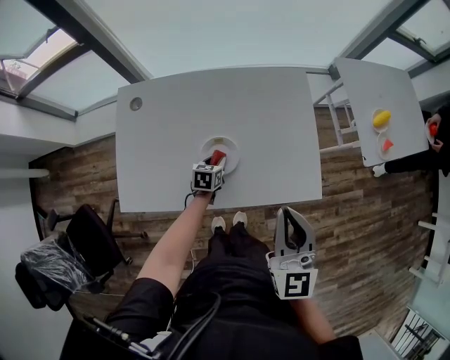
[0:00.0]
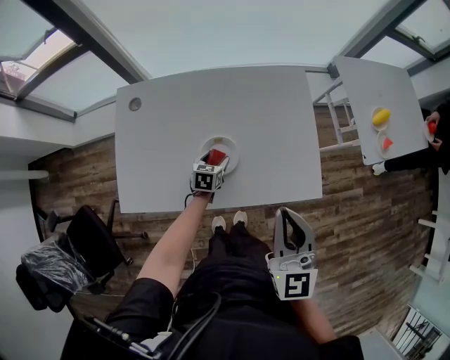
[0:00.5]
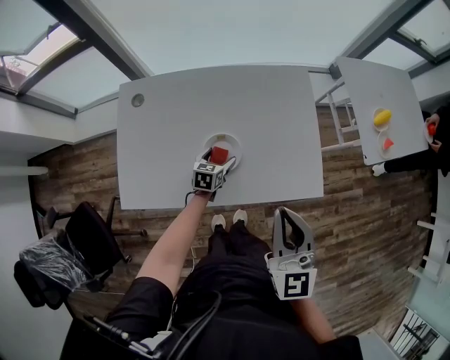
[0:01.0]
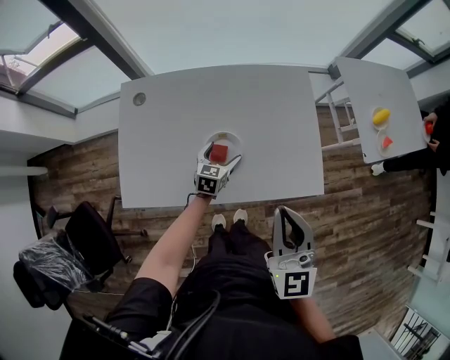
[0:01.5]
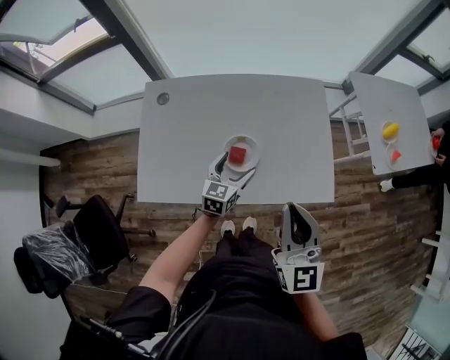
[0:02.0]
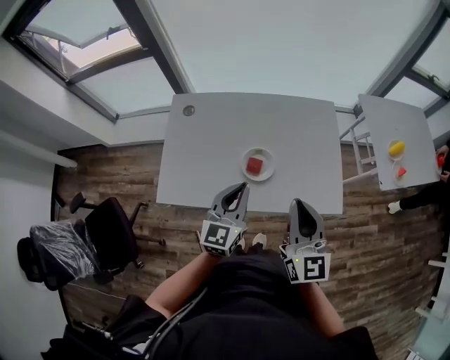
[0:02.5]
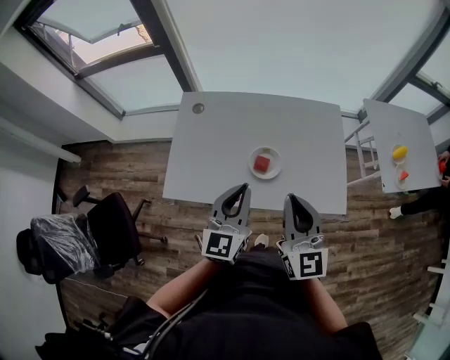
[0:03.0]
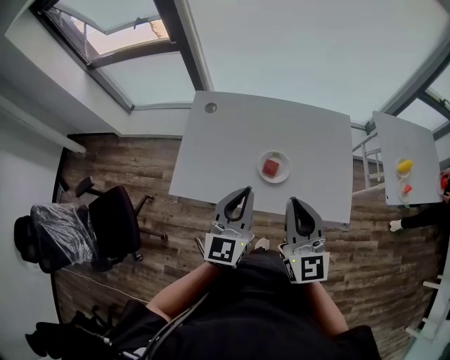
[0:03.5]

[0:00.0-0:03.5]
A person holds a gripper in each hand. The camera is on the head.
0:00.0 to 0:02.0: The right gripper shifts by some 5 cm; the left gripper goes approximately 15 cm upward, swivels roughly 30 degrees, and opens up.
0:02.0 to 0:03.5: The left gripper heads upward, backward and to the left, covering roughly 25 cm, turns by some 30 degrees, and closes, while the right gripper travels to the left by some 10 cm.

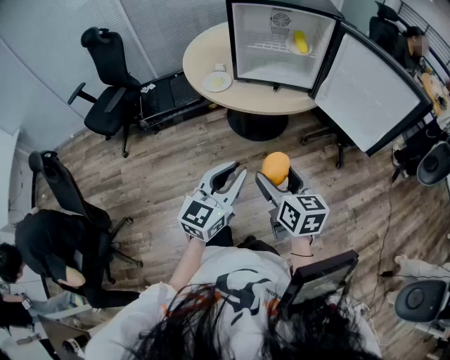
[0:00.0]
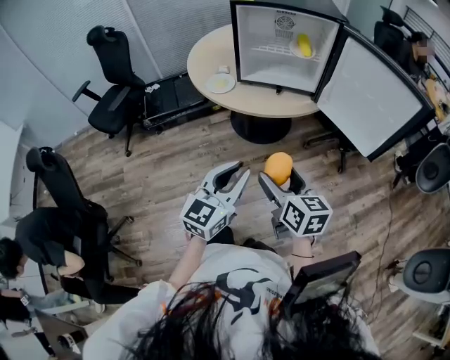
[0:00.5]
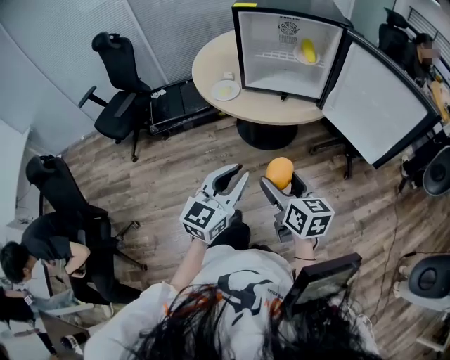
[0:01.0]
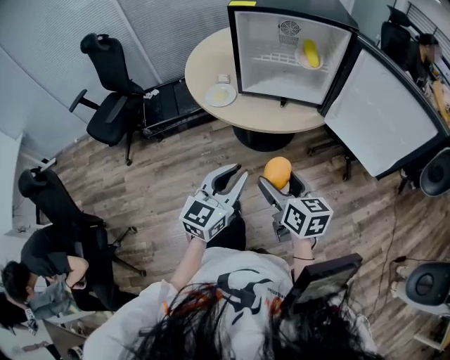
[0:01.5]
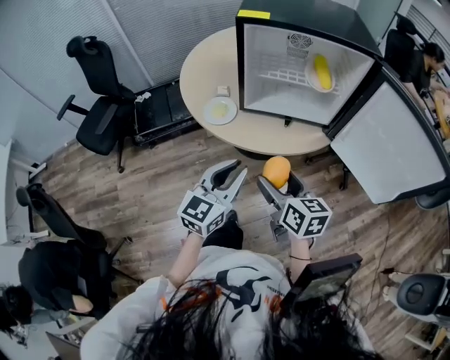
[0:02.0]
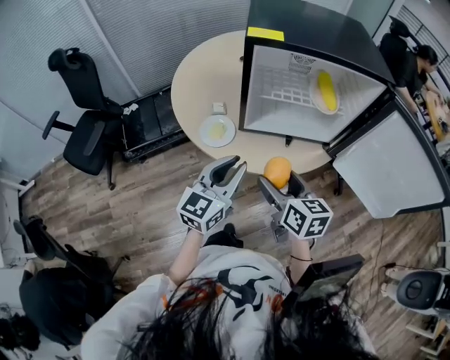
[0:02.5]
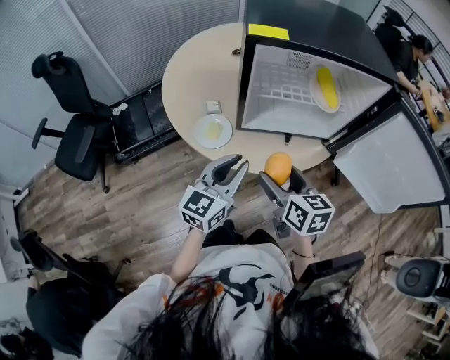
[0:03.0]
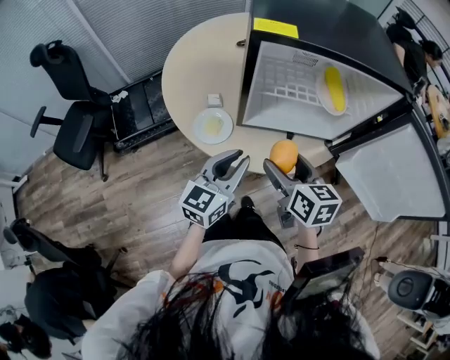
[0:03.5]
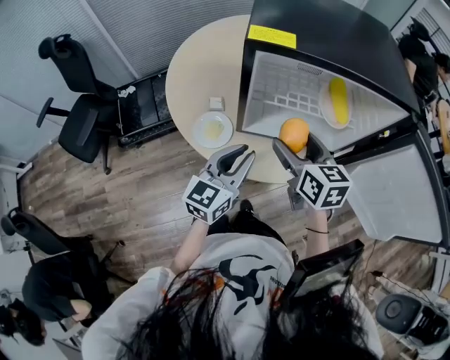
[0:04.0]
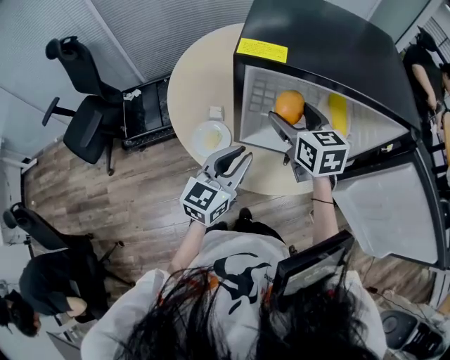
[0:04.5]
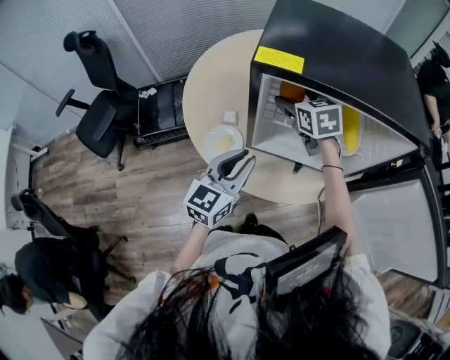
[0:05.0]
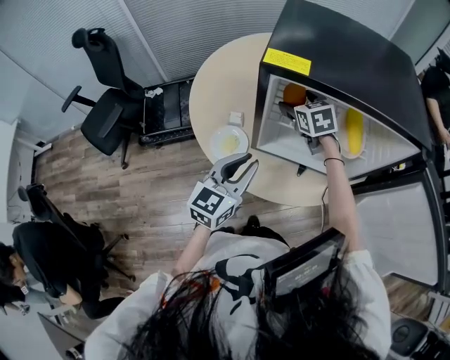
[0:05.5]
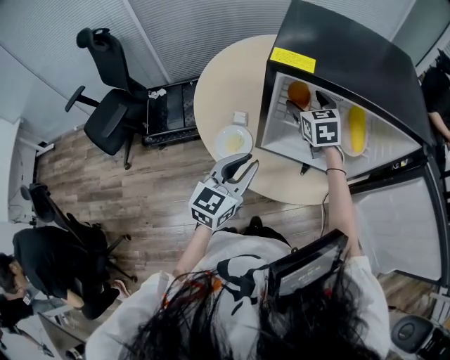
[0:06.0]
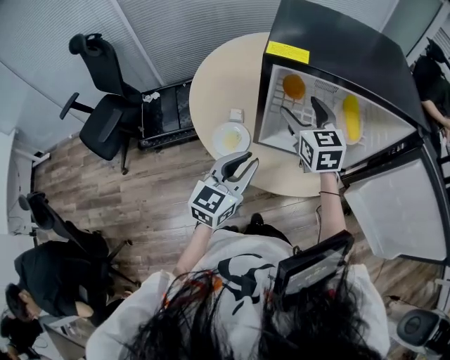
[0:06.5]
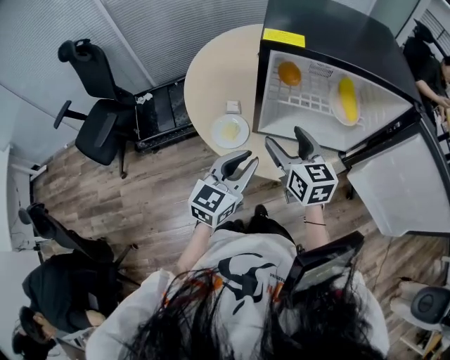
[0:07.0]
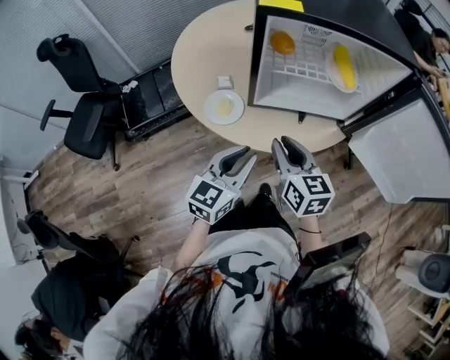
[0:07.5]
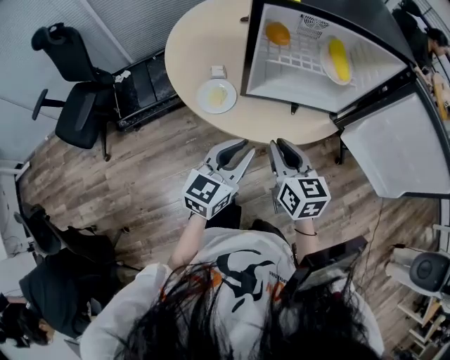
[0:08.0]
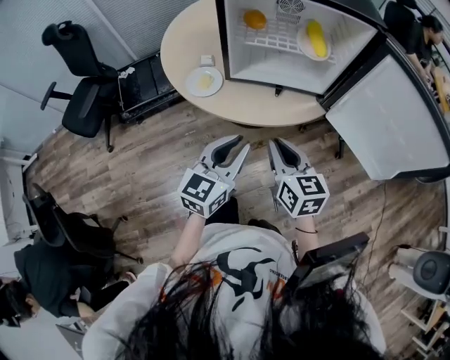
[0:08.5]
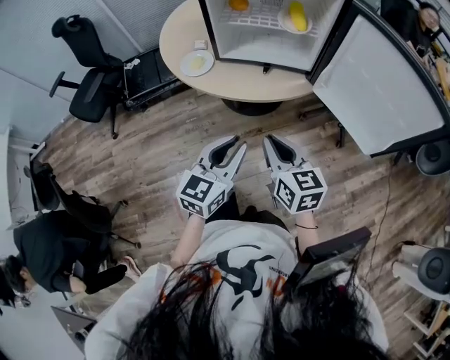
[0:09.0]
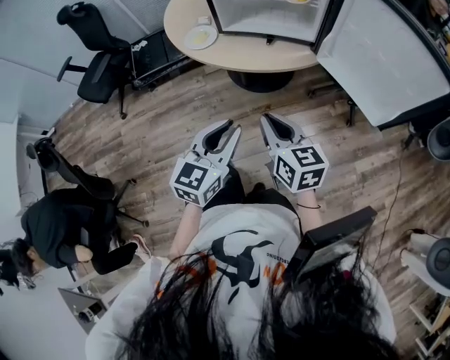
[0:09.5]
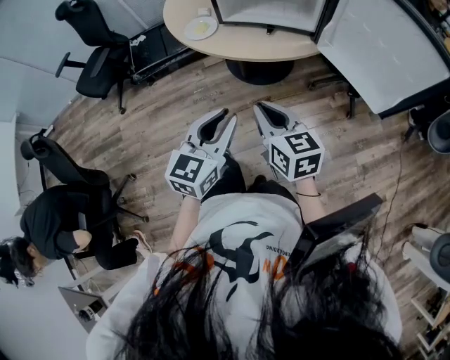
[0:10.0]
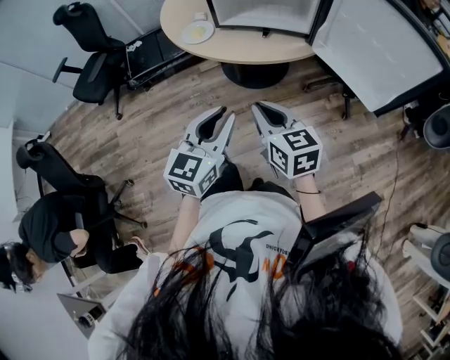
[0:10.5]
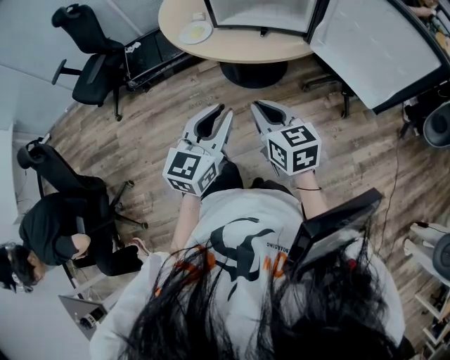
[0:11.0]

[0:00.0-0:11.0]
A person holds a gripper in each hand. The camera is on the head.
0:00.0 to 0:02.0: Both grippers travel together forward, roughly 20 cm.
0:02.0 to 0:03.5: Both grippers move forward, about 15 cm.
0:03.5 to 0:05.5: The left gripper heads forward, covering roughly 5 cm; the right gripper goes about 30 cm forward, and swivels approximately 40 degrees.
0:05.5 to 0:07.5: The right gripper heads backward, covering about 30 cm, rotates approximately 30 degrees, and closes up. The left gripper goes roughly 10 cm backward.
0:07.5 to 0:09.0: The grippers both shift backward and to the right by about 25 cm.
0:09.0 to 0:11.0: The two grippers go about 5 cm backward.

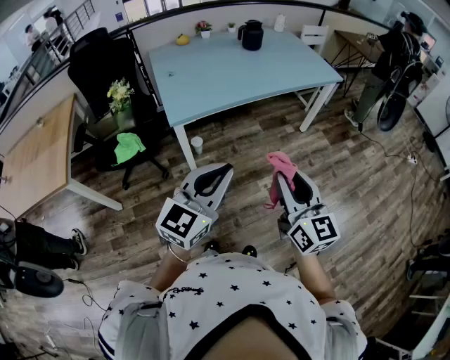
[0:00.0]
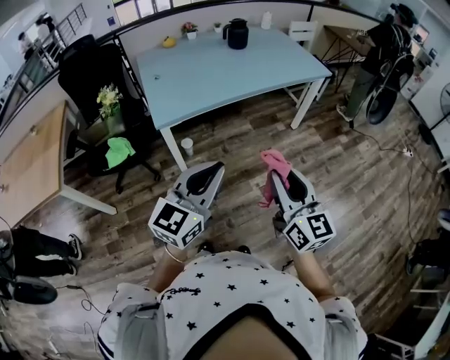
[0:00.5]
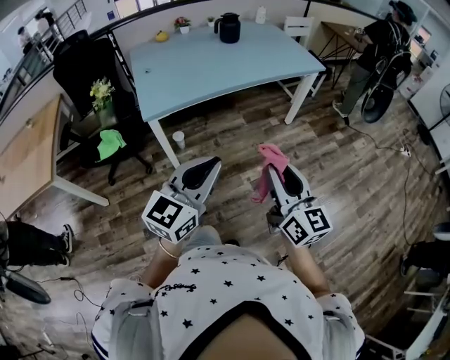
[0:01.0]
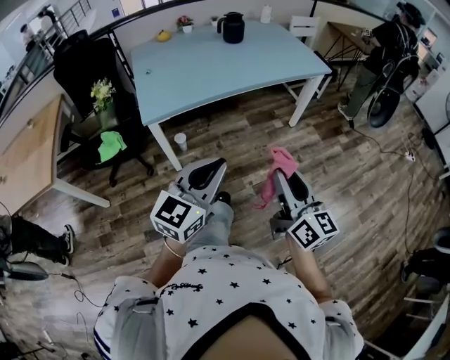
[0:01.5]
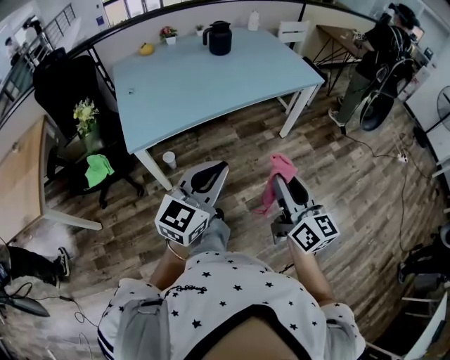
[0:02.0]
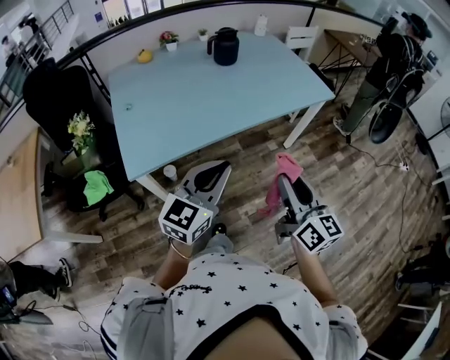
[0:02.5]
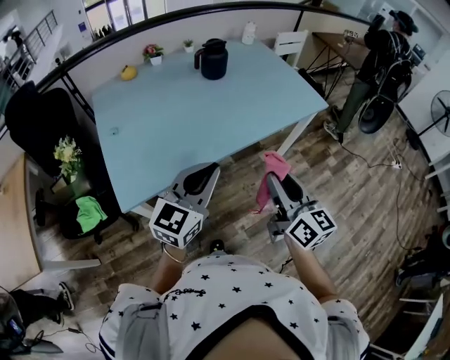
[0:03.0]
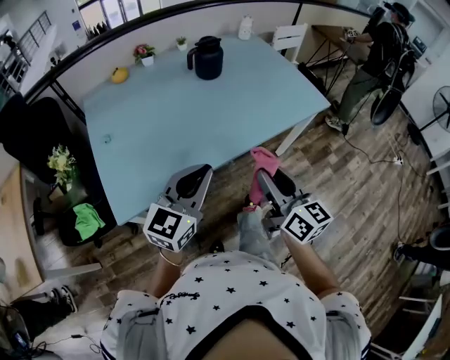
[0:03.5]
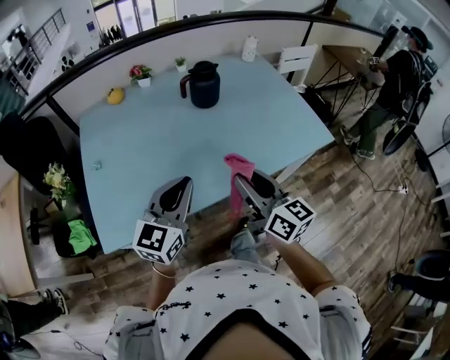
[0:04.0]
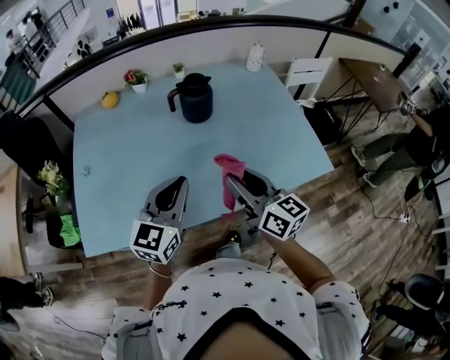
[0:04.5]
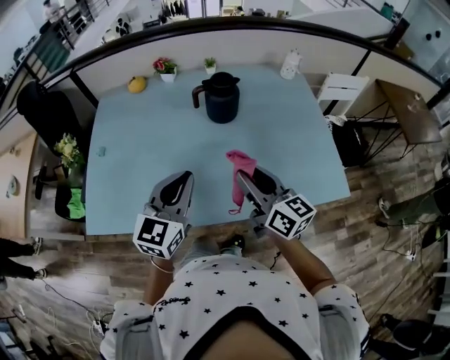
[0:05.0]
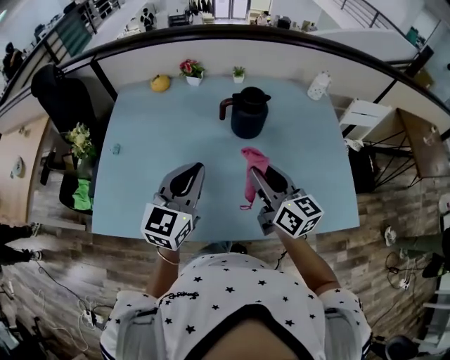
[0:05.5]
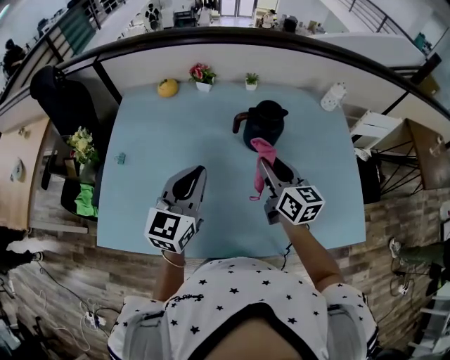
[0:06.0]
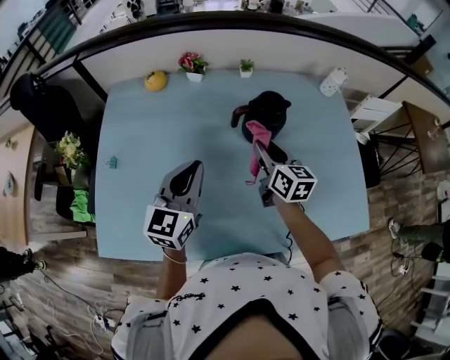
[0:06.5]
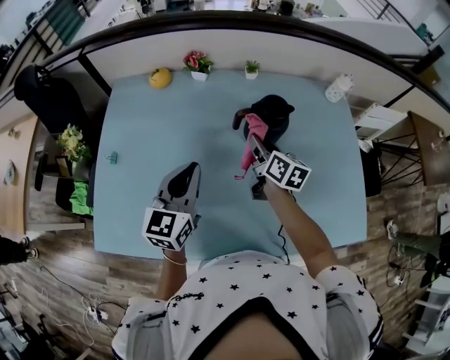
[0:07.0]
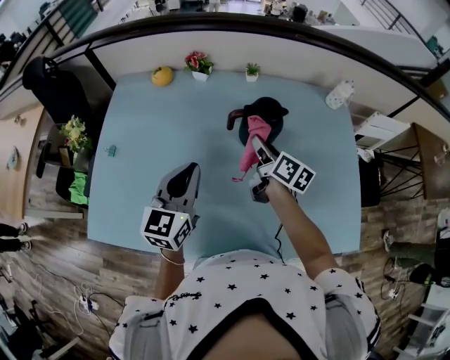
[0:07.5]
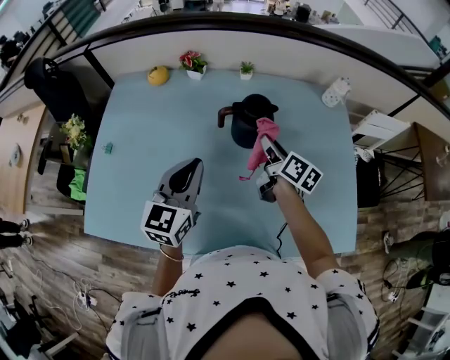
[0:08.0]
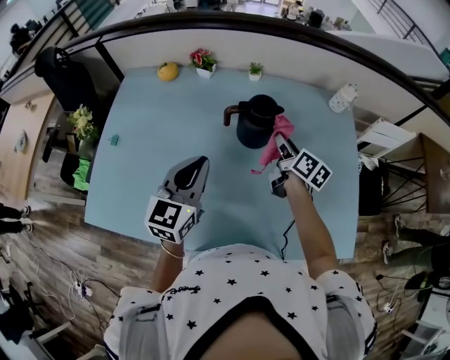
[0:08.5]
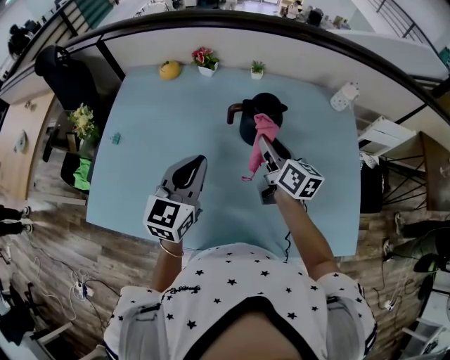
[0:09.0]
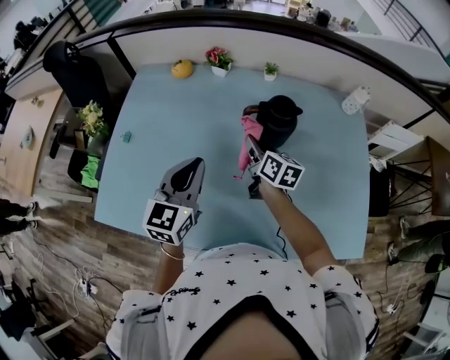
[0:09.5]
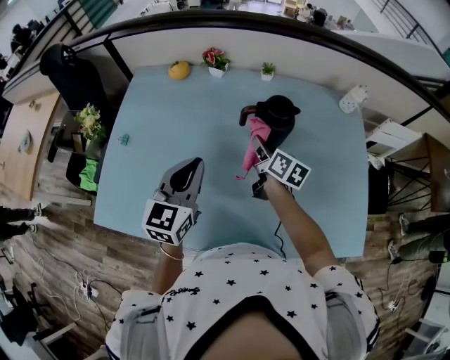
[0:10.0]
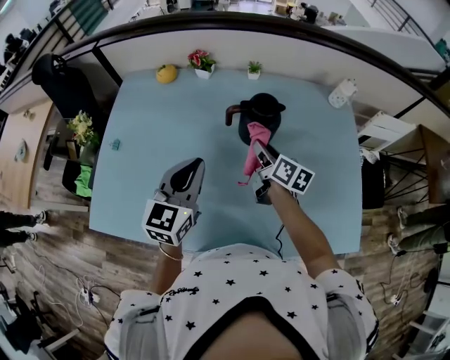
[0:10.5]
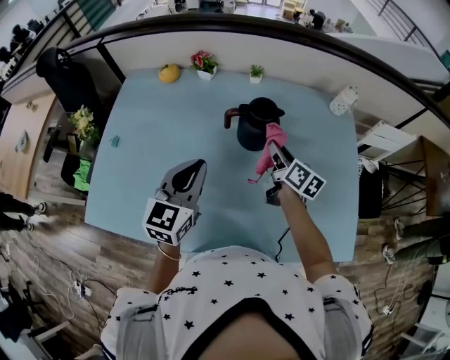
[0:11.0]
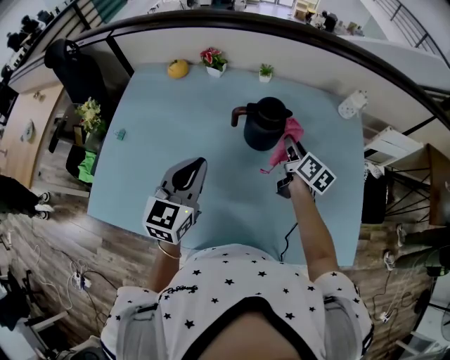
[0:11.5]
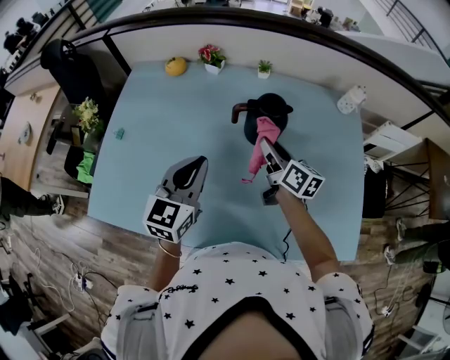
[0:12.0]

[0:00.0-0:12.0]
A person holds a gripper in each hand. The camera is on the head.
0:00.0 to 0:02.0: Both grippers move forward and to the right, some 20 cm.
0:02.0 to 0:04.0: Both grippers move forward, some 40 cm.
0:04.0 to 0:06.0: Both grippers move forward, roughly 25 cm. The left gripper swivels roughly 30 degrees.
0:06.0 to 0:08.0: The right gripper heads forward, to the right and downward, covering some 15 cm, and rotates about 30 degrees, while the left gripper shifts about 5 cm to the right.
0:08.0 to 0:10.0: The right gripper travels to the left by roughly 10 cm, while the left gripper heads to the left, covering about 5 cm.
0:10.0 to 0:12.0: The right gripper goes to the right and returns, about 15 cm each way.
